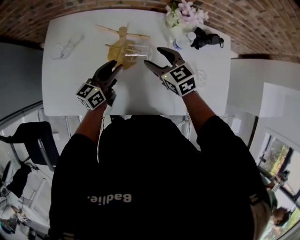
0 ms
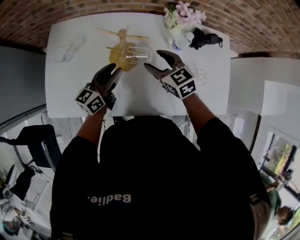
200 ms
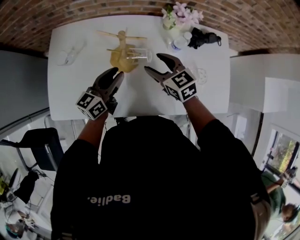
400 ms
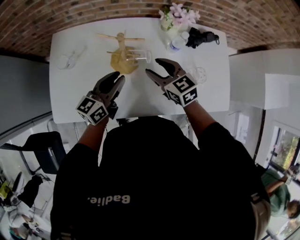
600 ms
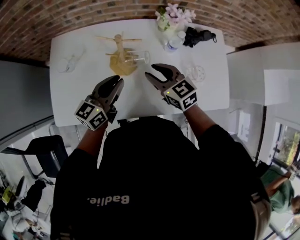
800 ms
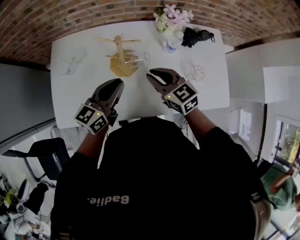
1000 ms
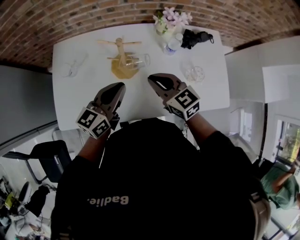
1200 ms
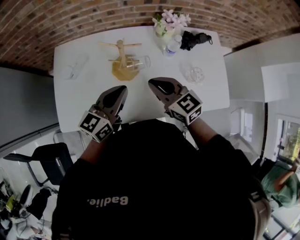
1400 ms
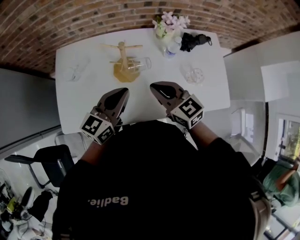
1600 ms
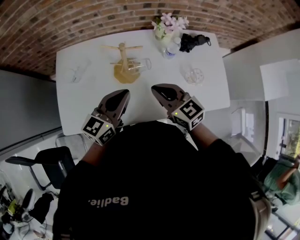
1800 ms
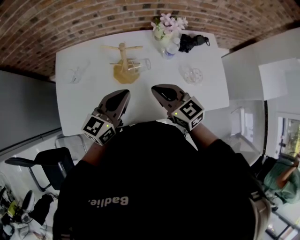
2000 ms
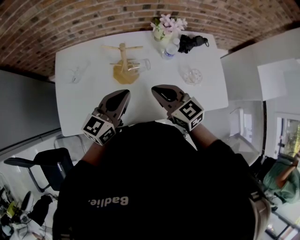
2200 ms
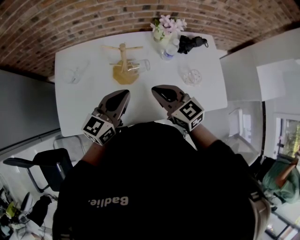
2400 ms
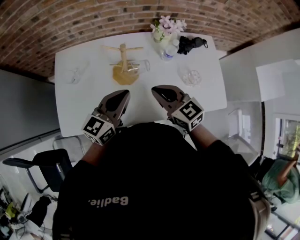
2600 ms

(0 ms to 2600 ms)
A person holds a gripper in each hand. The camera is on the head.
0 ms - 1200 ms: The right gripper goes about 10 cm backward and upward, and closes its fingers; the left gripper is displaced upward and backward by some 15 cm, and closes up.
1200 ms - 2600 ms: The right gripper shifts by about 5 cm.

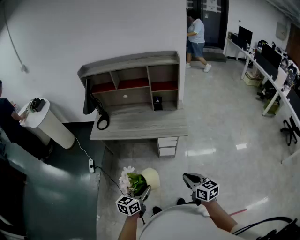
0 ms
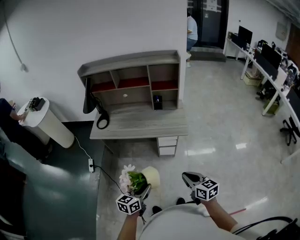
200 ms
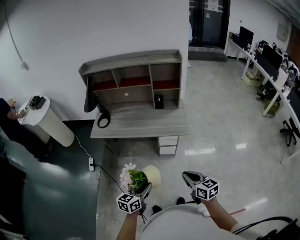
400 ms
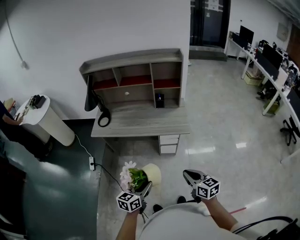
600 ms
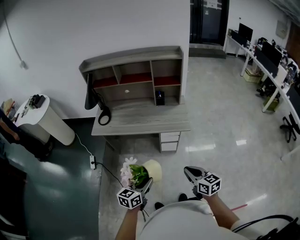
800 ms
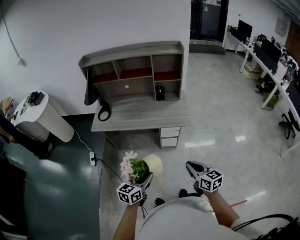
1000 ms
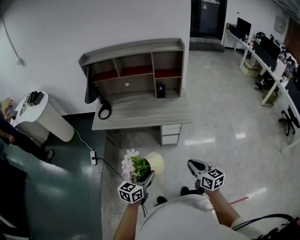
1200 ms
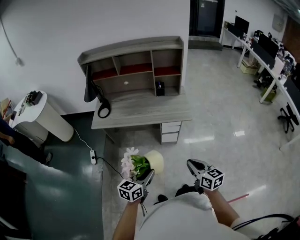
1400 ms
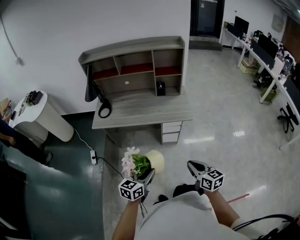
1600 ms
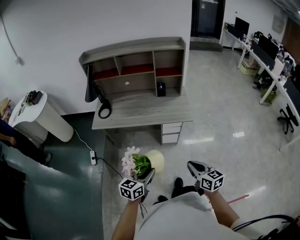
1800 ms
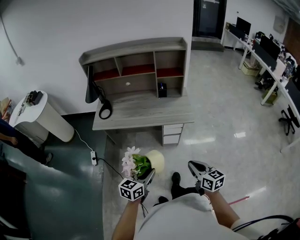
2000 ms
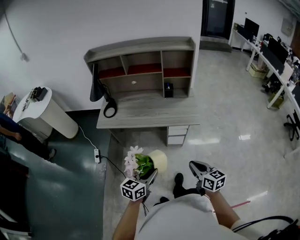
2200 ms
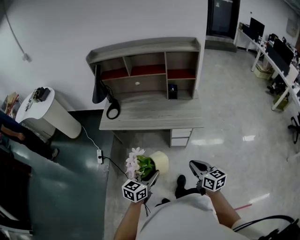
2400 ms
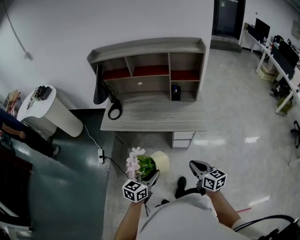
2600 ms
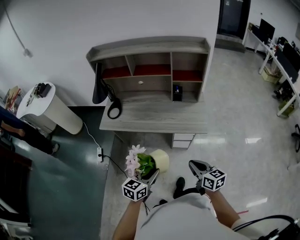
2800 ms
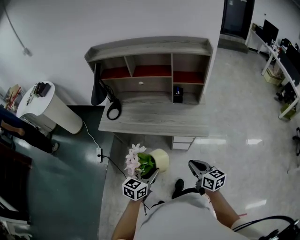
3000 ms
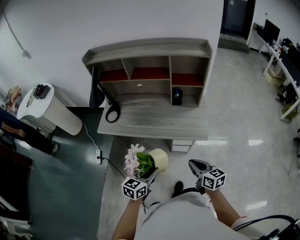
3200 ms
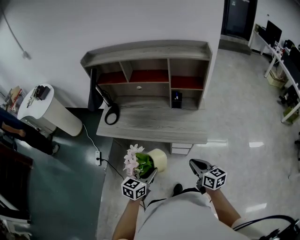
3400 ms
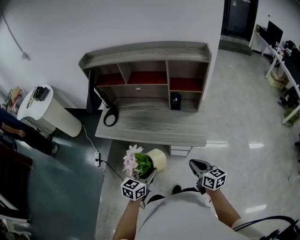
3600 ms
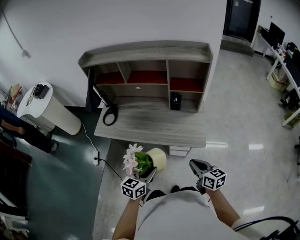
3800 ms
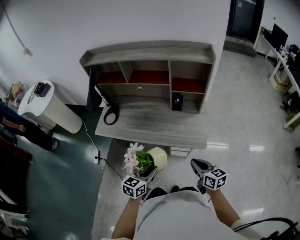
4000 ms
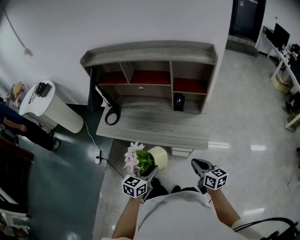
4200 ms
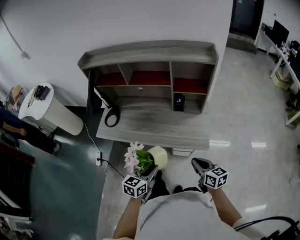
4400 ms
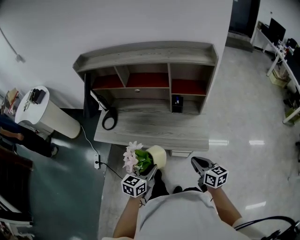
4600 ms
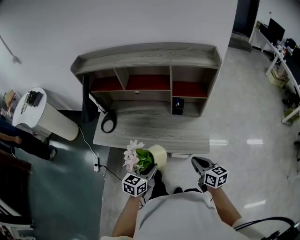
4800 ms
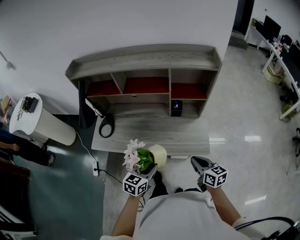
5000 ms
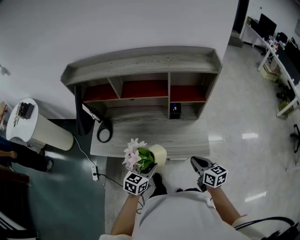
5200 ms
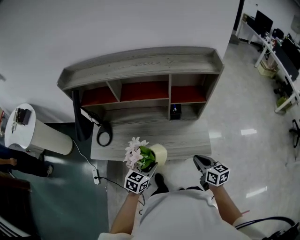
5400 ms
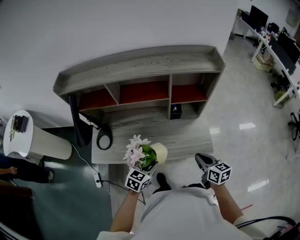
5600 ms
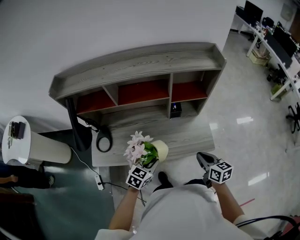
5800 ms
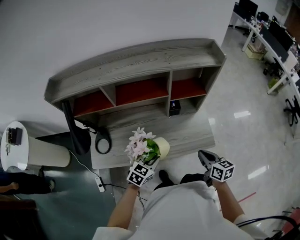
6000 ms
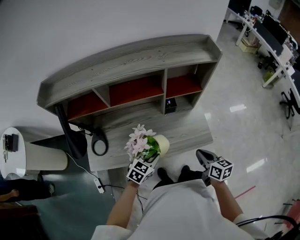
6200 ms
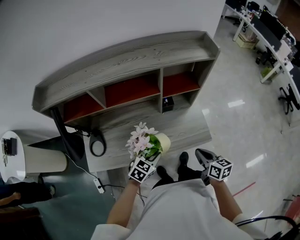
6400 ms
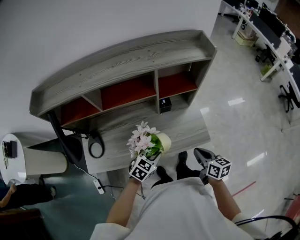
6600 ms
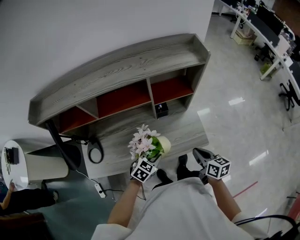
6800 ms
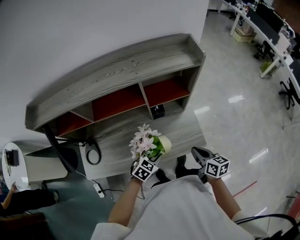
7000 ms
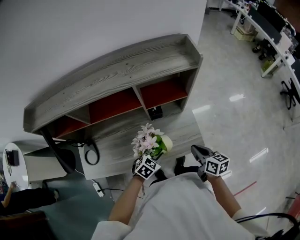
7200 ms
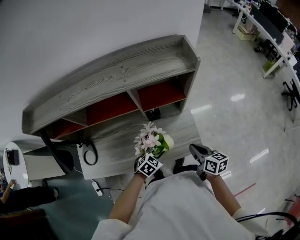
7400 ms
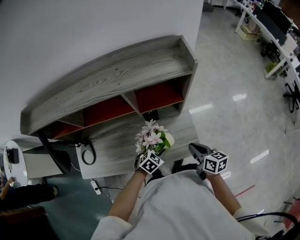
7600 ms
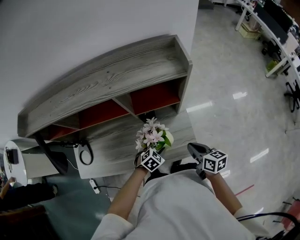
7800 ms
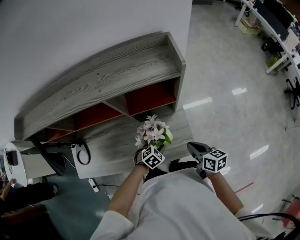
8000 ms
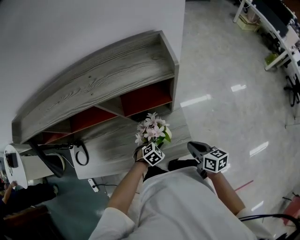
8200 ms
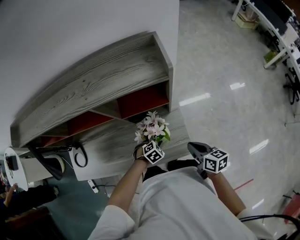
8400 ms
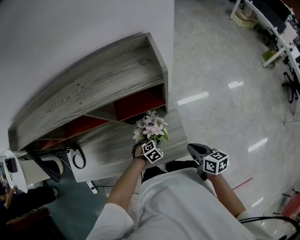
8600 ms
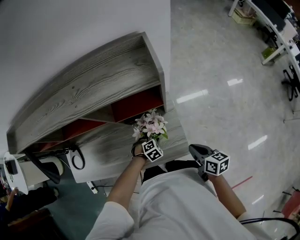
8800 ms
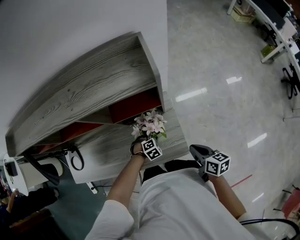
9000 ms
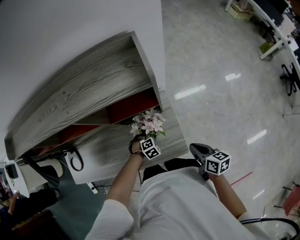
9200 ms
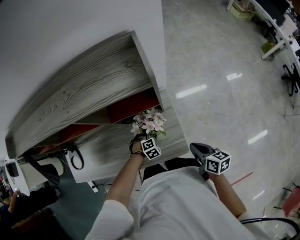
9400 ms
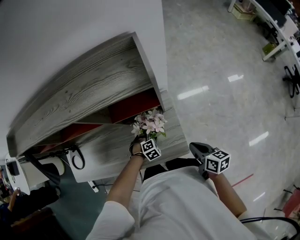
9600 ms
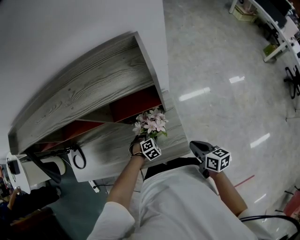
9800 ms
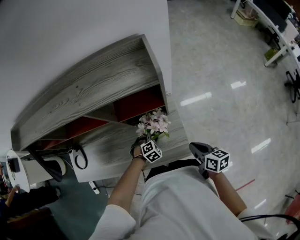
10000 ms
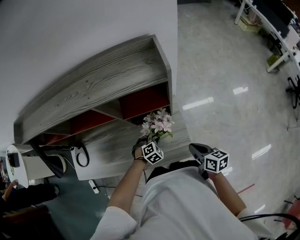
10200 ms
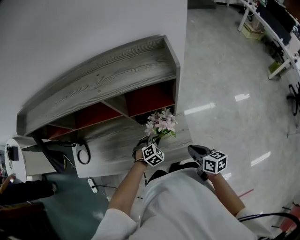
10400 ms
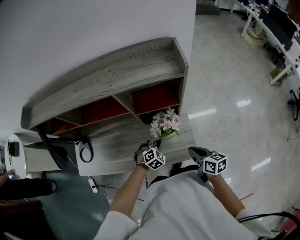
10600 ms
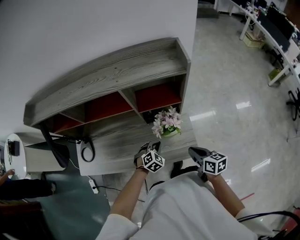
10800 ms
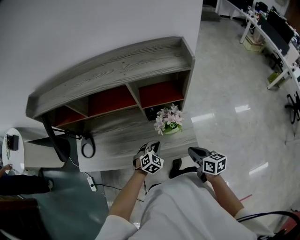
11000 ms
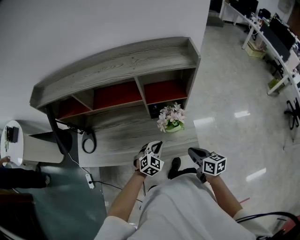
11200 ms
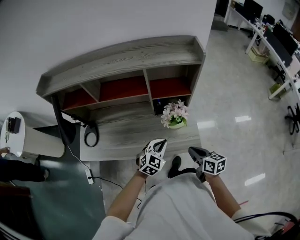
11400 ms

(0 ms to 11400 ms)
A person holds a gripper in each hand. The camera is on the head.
0 ms - 1400 ms: Both grippers move to the left, roughly 5 cm.
1400 ms - 2800 ms: Both grippers travel together forward, some 15 cm.
2800 ms - 4200 ms: The grippers both shift forward and to the right by about 15 cm.
4200 ms - 5600 ms: The two grippers go roughly 20 cm forward and to the left. The left gripper turns by about 20 degrees.
5600 ms - 7200 ms: The right gripper travels forward by roughly 10 cm; the left gripper shifts roughly 20 cm forward, to the right and downward, and swivels some 30 degrees.
7200 ms - 8600 ms: The left gripper travels downward, forward and to the right by approximately 20 cm, and swivels approximately 30 degrees. The right gripper goes roughly 15 cm to the right and forward.
8600 ms - 10000 ms: The grippers make only small movements.
10000 ms - 11400 ms: The left gripper goes approximately 25 cm upward, backward and to the left, tilts its fingers some 40 degrees upward, and closes. The right gripper is displaced to the left, backward and upward by about 20 cm.

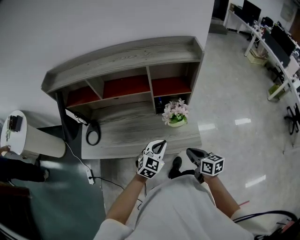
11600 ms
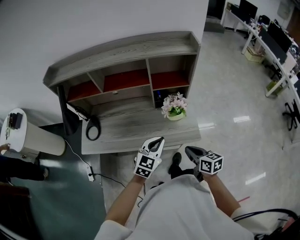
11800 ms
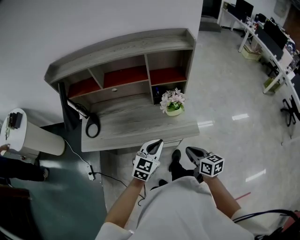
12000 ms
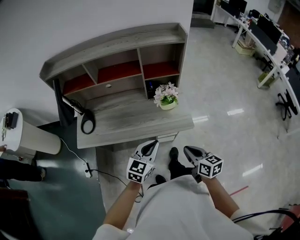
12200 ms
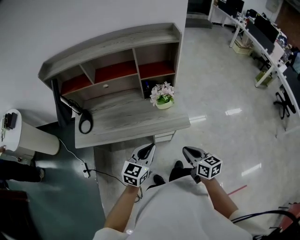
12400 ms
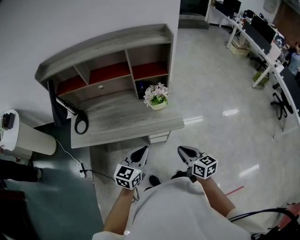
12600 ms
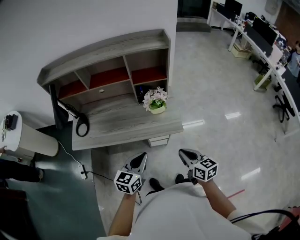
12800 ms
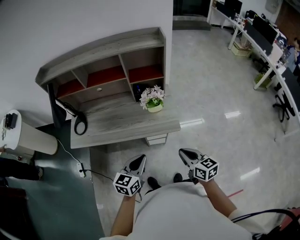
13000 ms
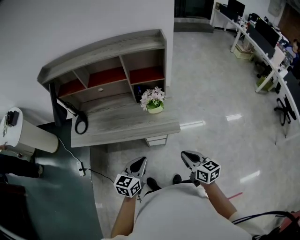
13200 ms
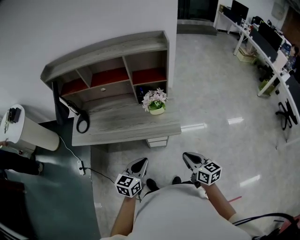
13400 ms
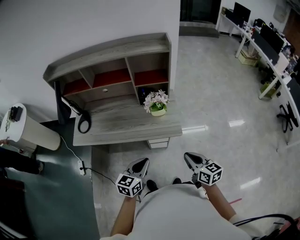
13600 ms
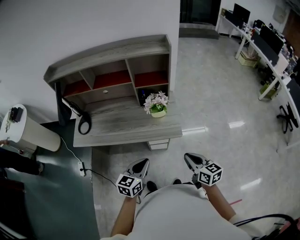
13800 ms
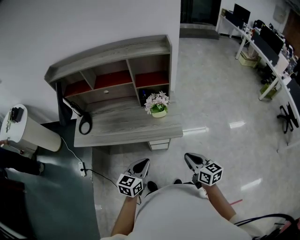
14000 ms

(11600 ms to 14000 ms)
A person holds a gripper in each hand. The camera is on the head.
11600 ms - 12800 ms: The grippers both shift backward by some 15 cm. The left gripper swivels approximately 30 degrees.
12800 ms - 14000 ms: The right gripper heads to the right, covering roughly 5 cm.

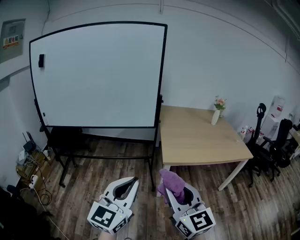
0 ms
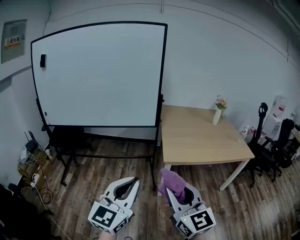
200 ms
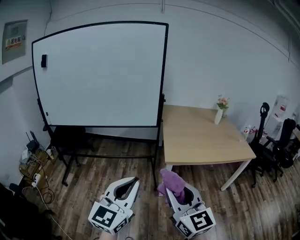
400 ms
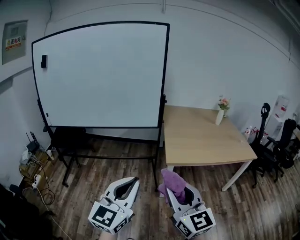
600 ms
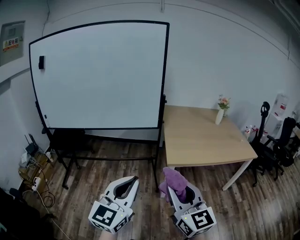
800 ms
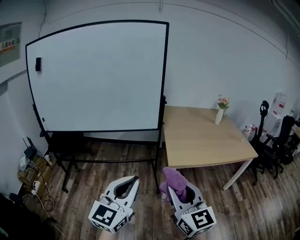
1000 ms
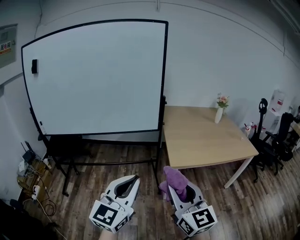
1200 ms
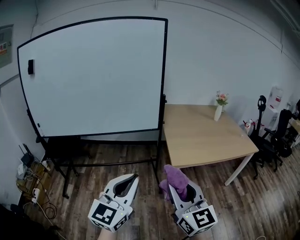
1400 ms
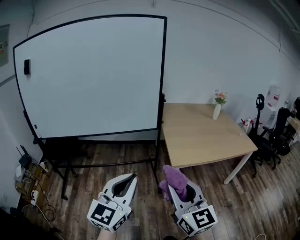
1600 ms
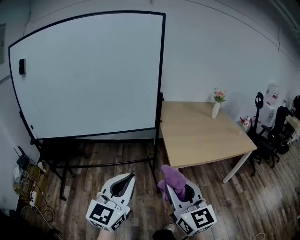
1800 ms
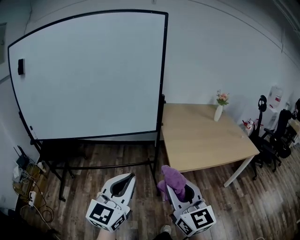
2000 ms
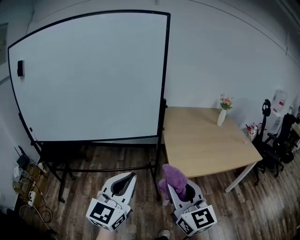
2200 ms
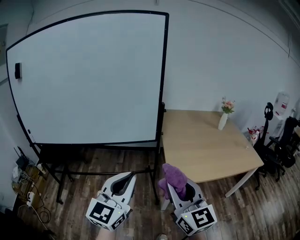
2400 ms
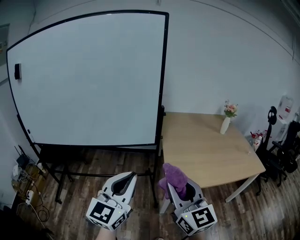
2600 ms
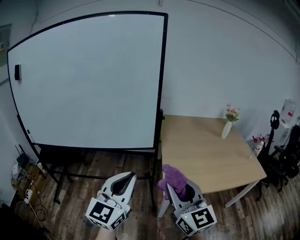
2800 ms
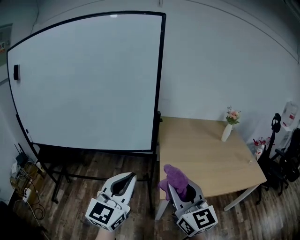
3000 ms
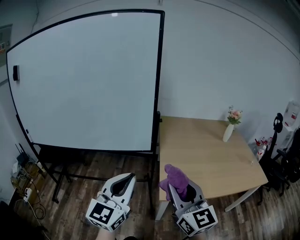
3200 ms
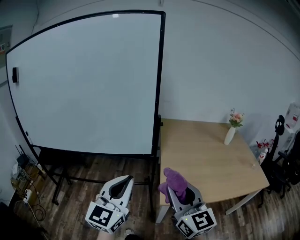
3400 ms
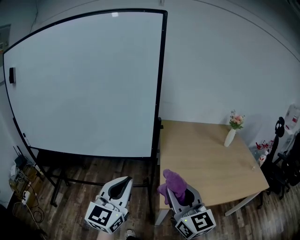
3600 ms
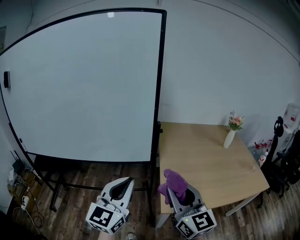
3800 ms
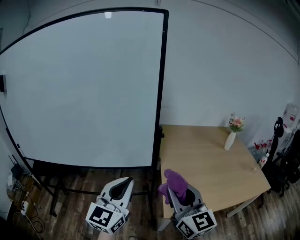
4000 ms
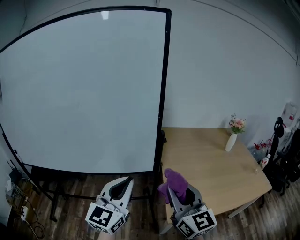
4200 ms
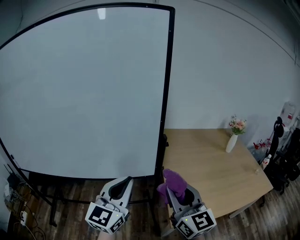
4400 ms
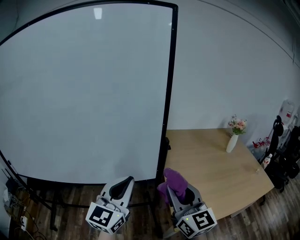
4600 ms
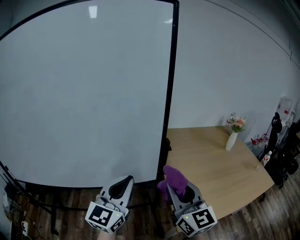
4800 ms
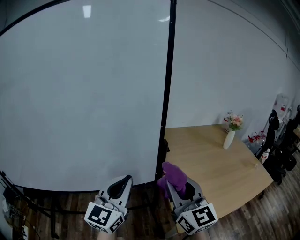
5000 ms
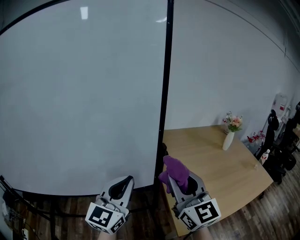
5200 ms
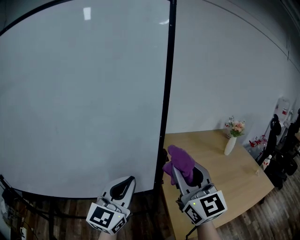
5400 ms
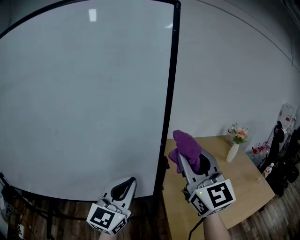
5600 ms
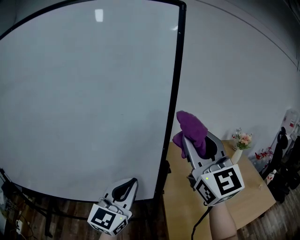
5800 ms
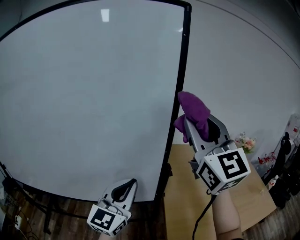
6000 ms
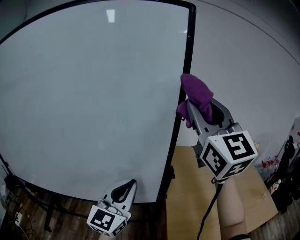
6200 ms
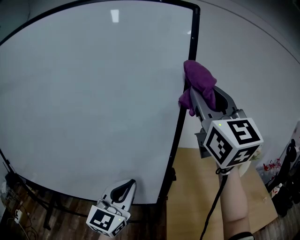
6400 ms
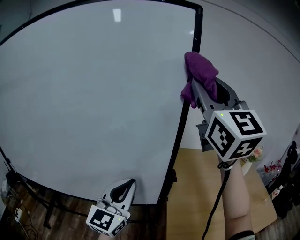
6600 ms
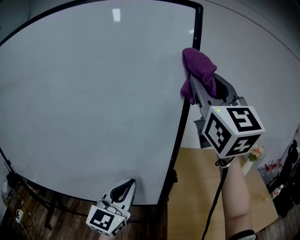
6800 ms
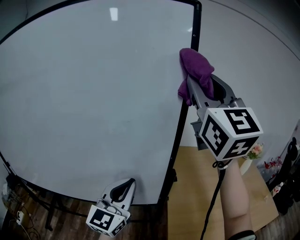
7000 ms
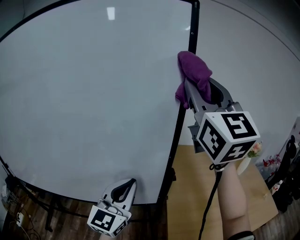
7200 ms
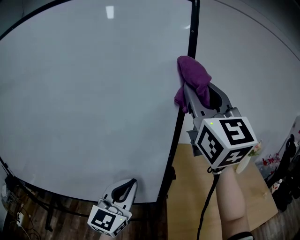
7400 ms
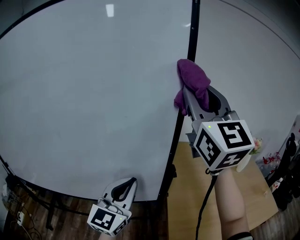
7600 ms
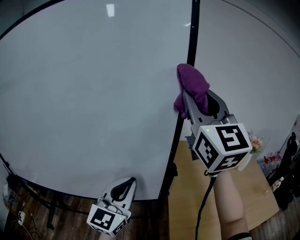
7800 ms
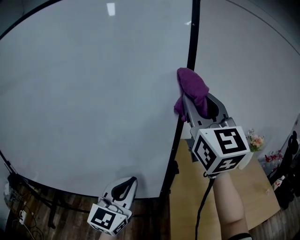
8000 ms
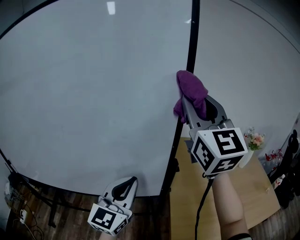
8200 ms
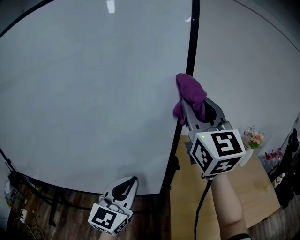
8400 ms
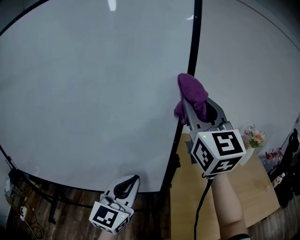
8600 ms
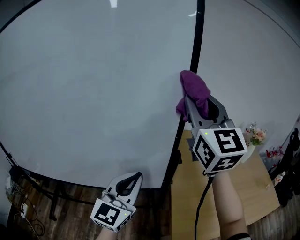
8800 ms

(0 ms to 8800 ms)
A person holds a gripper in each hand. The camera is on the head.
0 ms - 1400 ms: Both grippers move forward and to the left, some 10 cm.
1400 ms - 3000 ms: The right gripper goes some 25 cm forward and to the right. The left gripper shifts some 25 cm forward.
3000 ms - 4400 ms: The two grippers go roughly 20 cm forward.
4400 ms - 5800 ms: The right gripper shifts some 25 cm upward and forward, and swivels roughly 20 degrees; the left gripper heads forward, covering roughly 15 cm.
5800 ms - 7400 ms: The right gripper heads upward and forward, covering approximately 15 cm.
7400 ms - 8800 ms: The right gripper moves downward, some 10 cm.
